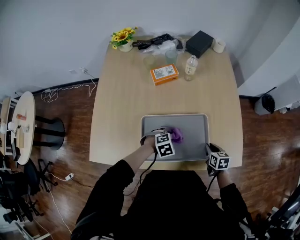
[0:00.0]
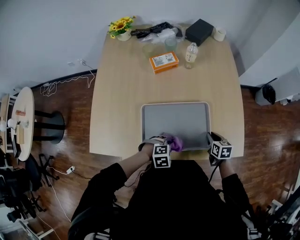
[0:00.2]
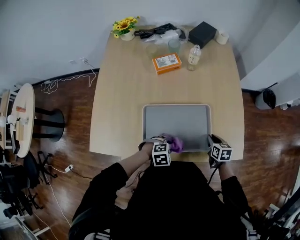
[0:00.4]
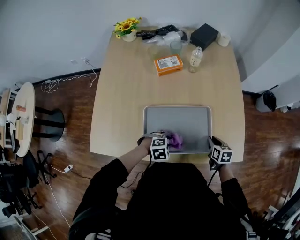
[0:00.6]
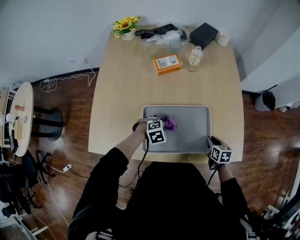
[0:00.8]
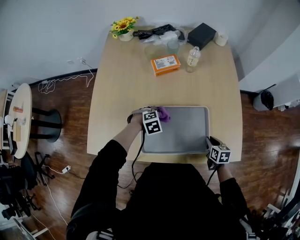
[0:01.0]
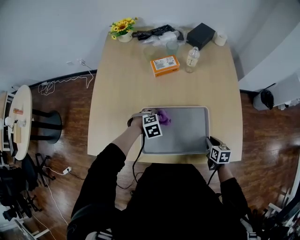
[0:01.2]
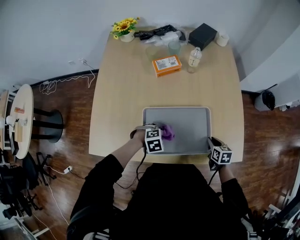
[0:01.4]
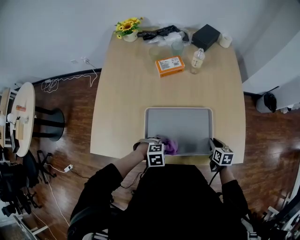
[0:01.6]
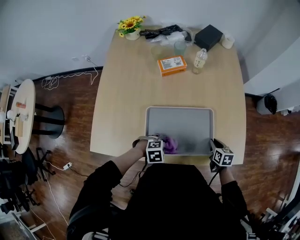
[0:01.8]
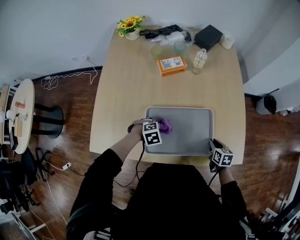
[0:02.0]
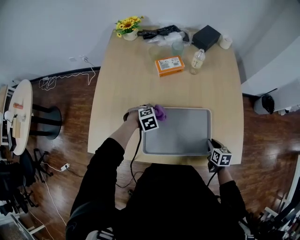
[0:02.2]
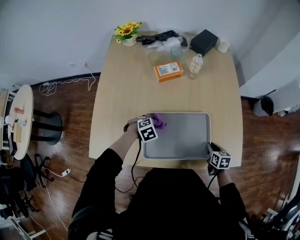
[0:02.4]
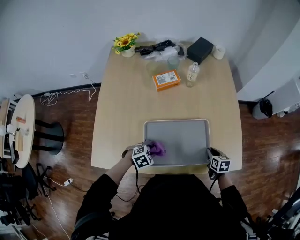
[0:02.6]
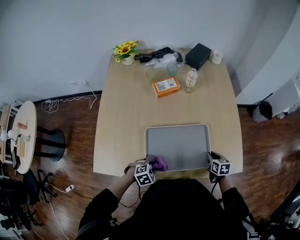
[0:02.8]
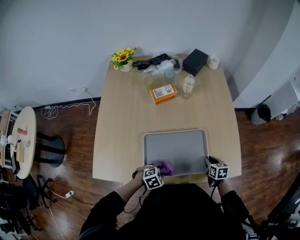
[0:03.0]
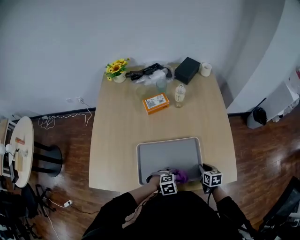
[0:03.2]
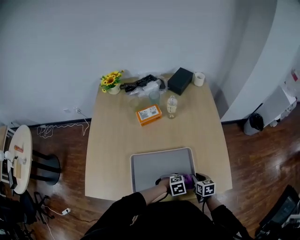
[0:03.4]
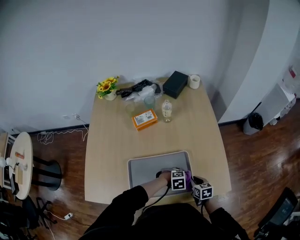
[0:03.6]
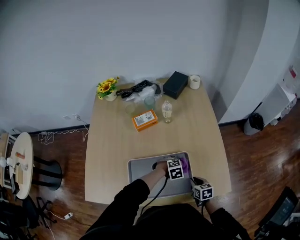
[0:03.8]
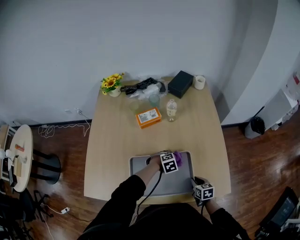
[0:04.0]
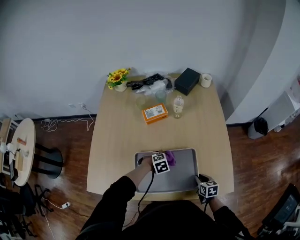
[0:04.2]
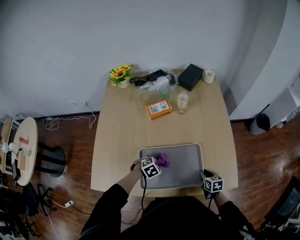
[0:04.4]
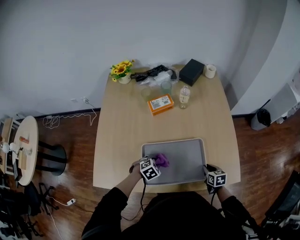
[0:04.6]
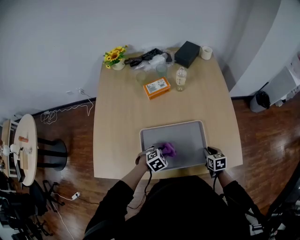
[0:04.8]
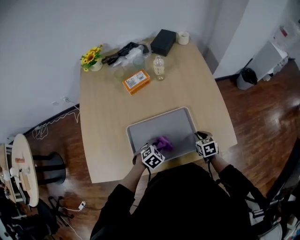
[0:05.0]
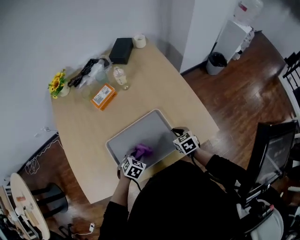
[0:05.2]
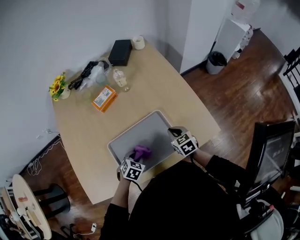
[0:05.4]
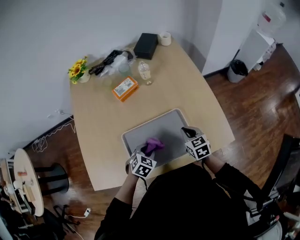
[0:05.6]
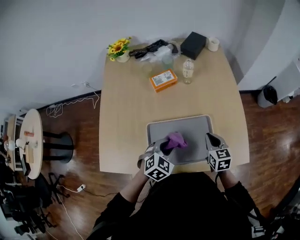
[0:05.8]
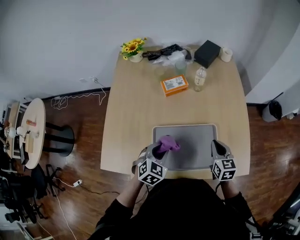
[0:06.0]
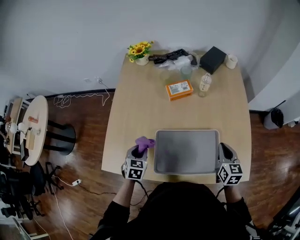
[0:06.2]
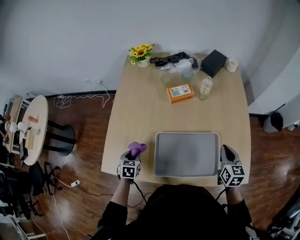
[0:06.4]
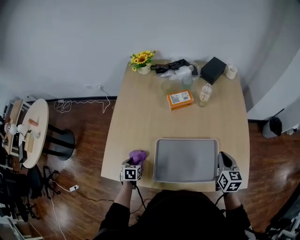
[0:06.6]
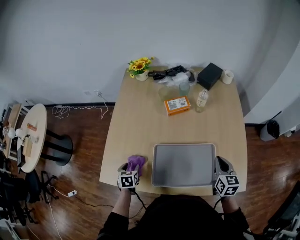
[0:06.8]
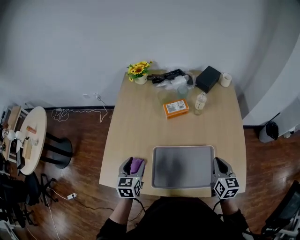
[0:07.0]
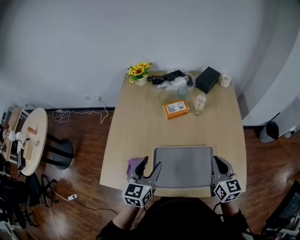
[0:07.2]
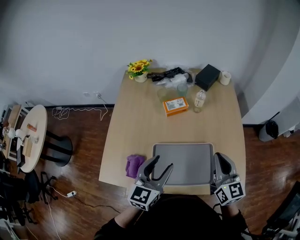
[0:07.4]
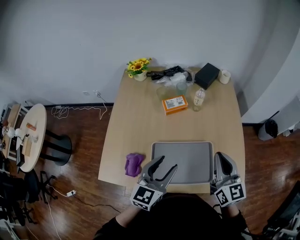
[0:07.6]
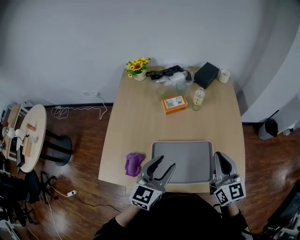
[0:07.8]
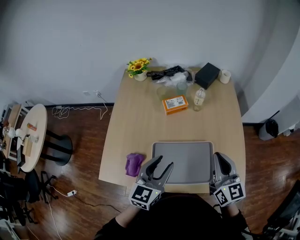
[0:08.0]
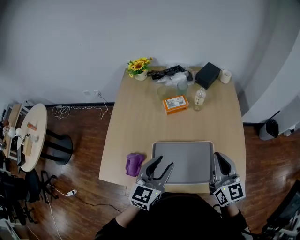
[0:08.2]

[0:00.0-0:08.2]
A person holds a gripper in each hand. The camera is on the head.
0:00.0 to 0:01.6: The left gripper moves forward and backward over about 15 cm, changing direction 2 times.
0:01.6 to 0:03.2: The left gripper goes approximately 10 cm to the right.
0:03.2 to 0:05.0: The left gripper goes left and right, about 25 cm each way, reversing 2 times.
0:05.0 to 0:06.6: The left gripper reaches some 15 cm upward, then returns, twists approximately 60 degrees counterclockwise, seen from behind, and opens its fingers. Meanwhile the right gripper moves upward, approximately 15 cm, and changes its angle by some 30 degrees.
0:06.6 to 0:08.2: The left gripper goes approximately 35 cm upward and to the right, and tilts its fingers roughly 50 degrees upward. Meanwhile the right gripper moves upward, about 15 cm, and turns by roughly 30 degrees.

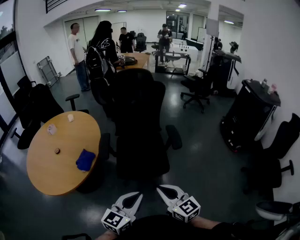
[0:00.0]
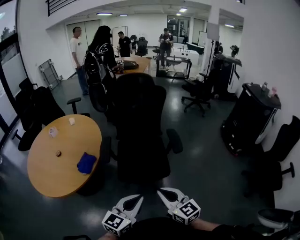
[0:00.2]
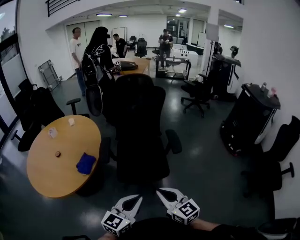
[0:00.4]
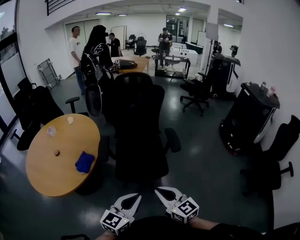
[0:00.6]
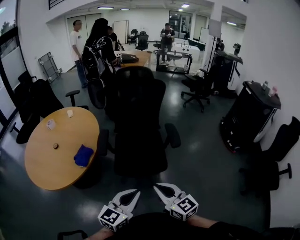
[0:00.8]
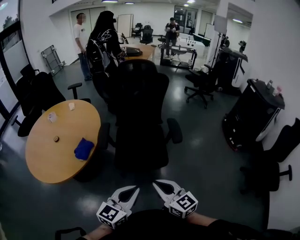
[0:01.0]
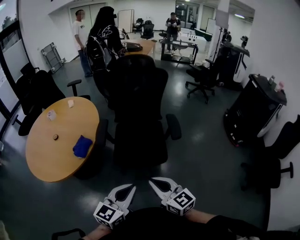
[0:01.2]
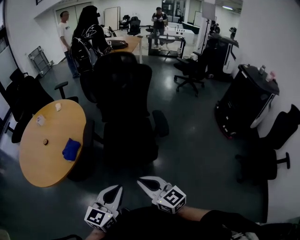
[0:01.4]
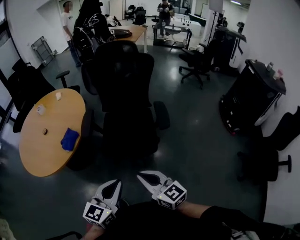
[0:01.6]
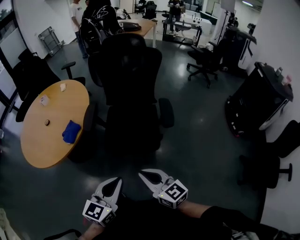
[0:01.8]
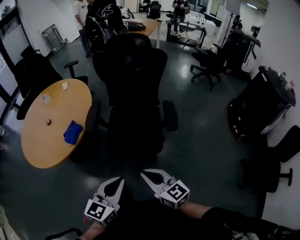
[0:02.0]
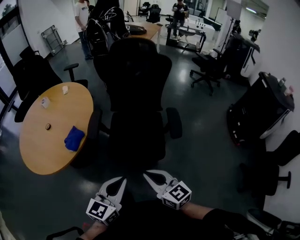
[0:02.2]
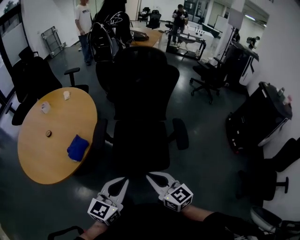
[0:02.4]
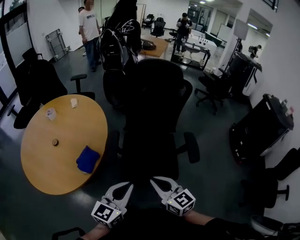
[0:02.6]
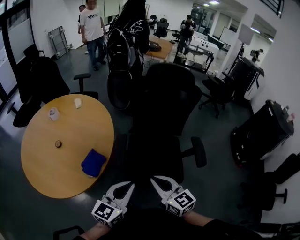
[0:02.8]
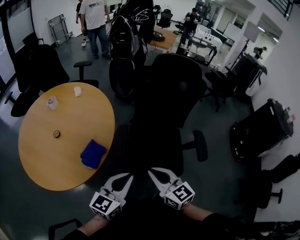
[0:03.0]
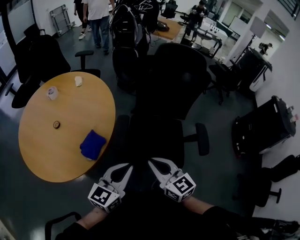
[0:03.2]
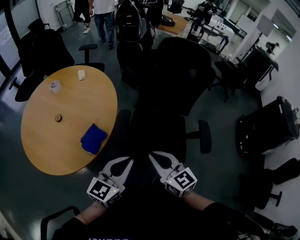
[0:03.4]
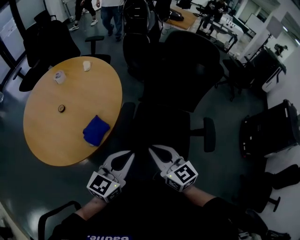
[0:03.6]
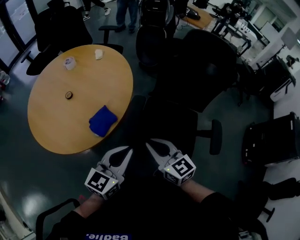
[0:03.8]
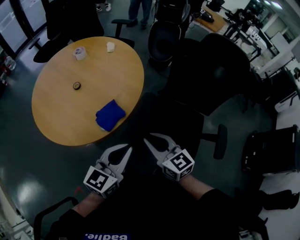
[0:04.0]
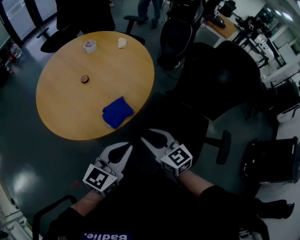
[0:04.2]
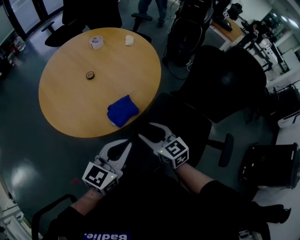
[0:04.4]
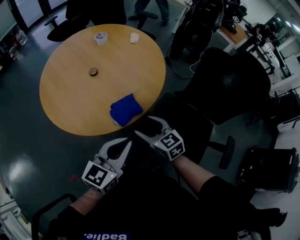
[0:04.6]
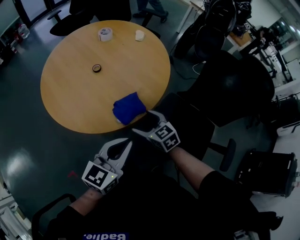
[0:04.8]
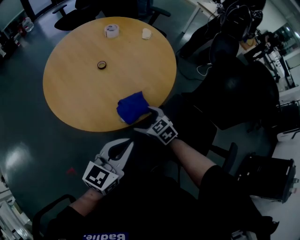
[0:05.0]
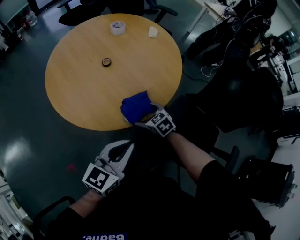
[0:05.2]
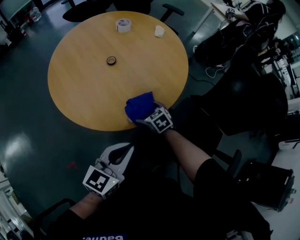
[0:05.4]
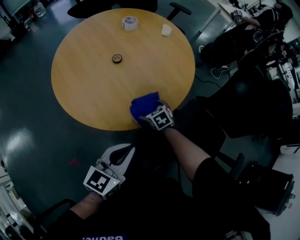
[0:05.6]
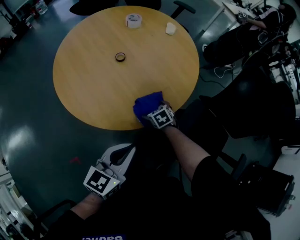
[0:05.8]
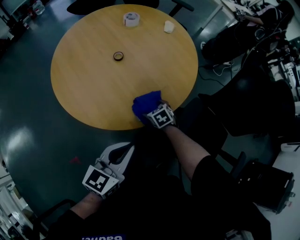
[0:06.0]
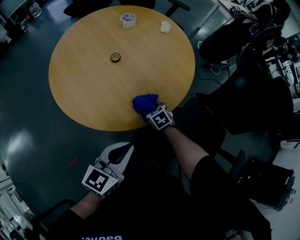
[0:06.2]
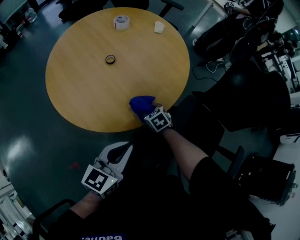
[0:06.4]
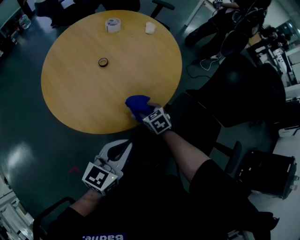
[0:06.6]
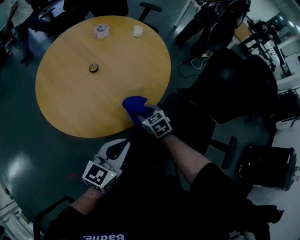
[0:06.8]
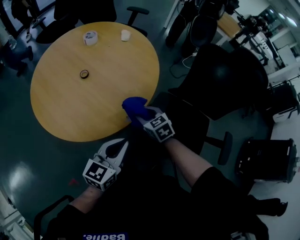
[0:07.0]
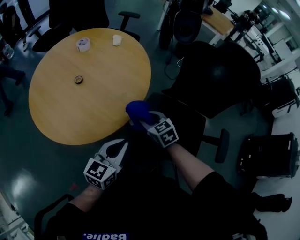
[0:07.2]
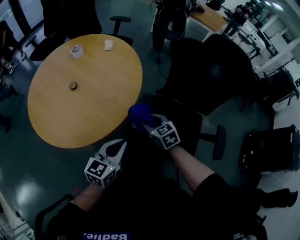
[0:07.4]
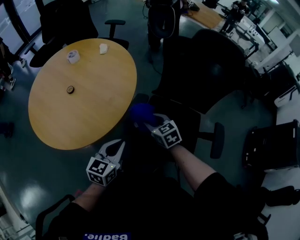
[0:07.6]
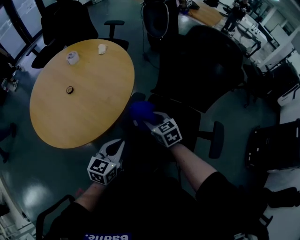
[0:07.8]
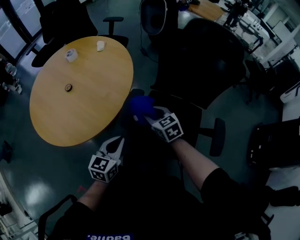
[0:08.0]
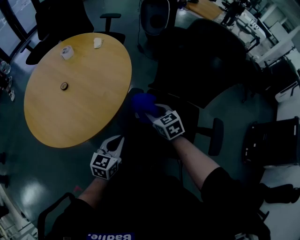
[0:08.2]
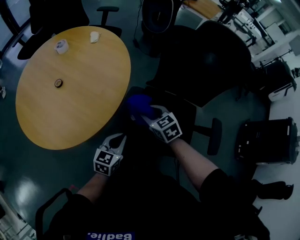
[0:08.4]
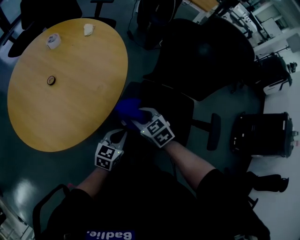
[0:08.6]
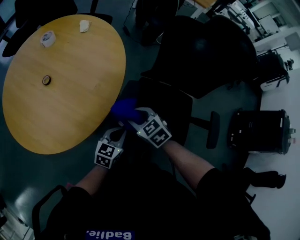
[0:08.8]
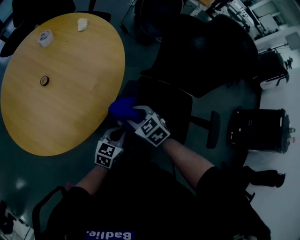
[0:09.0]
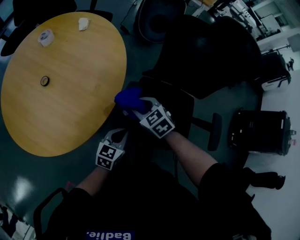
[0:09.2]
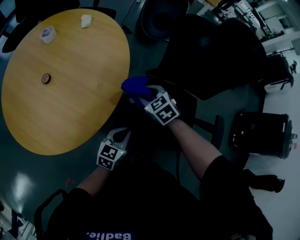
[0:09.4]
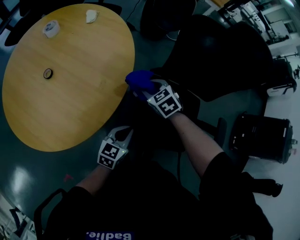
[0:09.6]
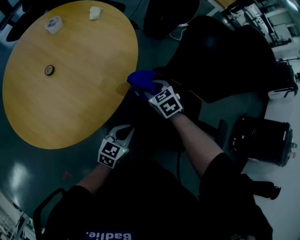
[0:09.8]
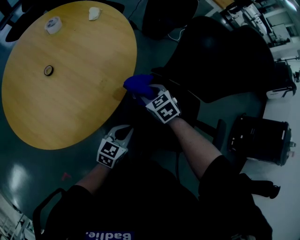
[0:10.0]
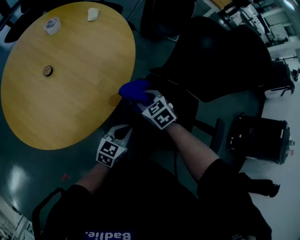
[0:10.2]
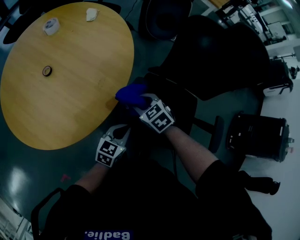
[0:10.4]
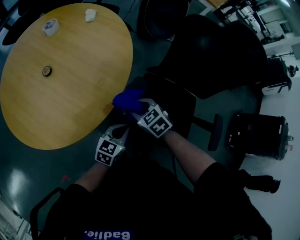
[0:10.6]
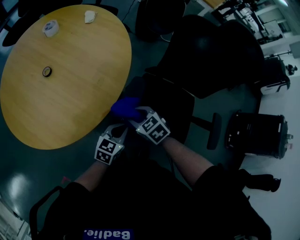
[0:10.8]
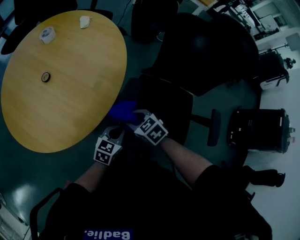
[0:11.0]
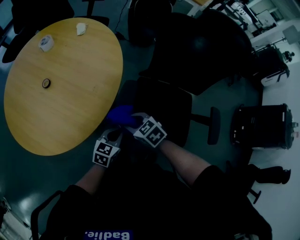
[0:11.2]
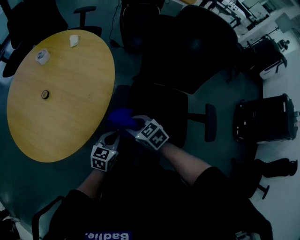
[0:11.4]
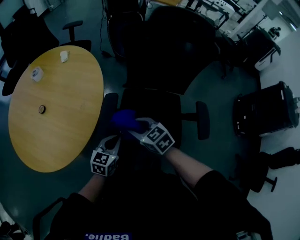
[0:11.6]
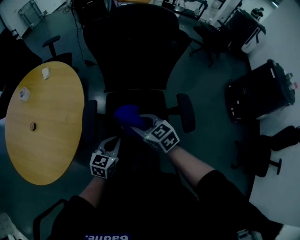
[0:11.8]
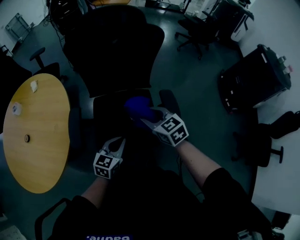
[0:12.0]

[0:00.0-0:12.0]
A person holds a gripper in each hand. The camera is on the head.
0:00.0 to 0:01.6: The right gripper shifts by about 5 cm.
0:01.6 to 0:03.0: The two grippers go about 30 cm forward and to the left.
0:03.0 to 0:04.4: The right gripper changes place by about 20 cm, swivels approximately 30 degrees, and opens its fingers; the left gripper changes place by roughly 15 cm, and rotates approximately 20 degrees.
0:04.4 to 0:06.0: The right gripper heads downward and forward, covering some 30 cm, angles its fingers downward, by some 40 degrees, and opens its fingers. Meanwhile the left gripper is displaced to the left and downward by roughly 10 cm.
0:06.0 to 0:07.6: The right gripper is displaced to the right and upward by approximately 30 cm, turns by some 30 degrees, and closes; the left gripper heads to the right, covering about 20 cm.
0:07.6 to 0:09.0: The right gripper goes about 10 cm to the left and downward. The left gripper heads downward, covering about 15 cm.
0:09.0 to 0:10.4: The right gripper travels forward by about 5 cm.
0:10.4 to 0:12.0: The right gripper shifts by approximately 40 cm, and rotates some 40 degrees, while the left gripper moves about 25 cm, and swivels about 20 degrees.

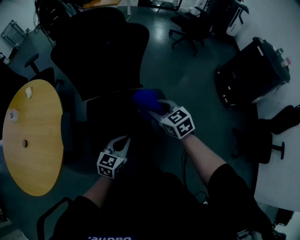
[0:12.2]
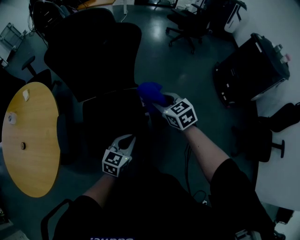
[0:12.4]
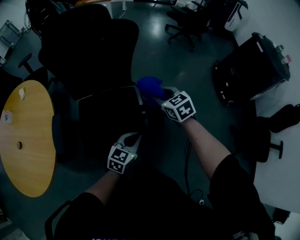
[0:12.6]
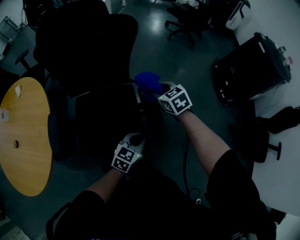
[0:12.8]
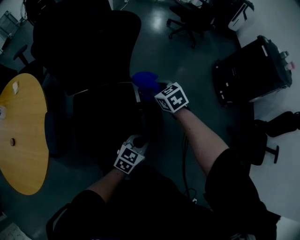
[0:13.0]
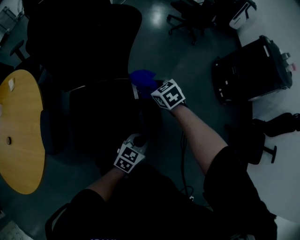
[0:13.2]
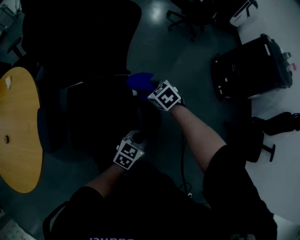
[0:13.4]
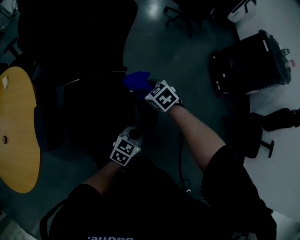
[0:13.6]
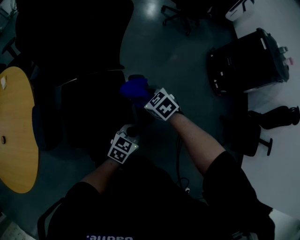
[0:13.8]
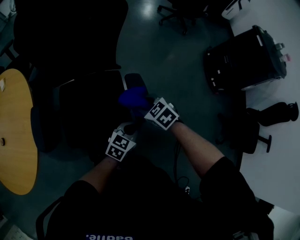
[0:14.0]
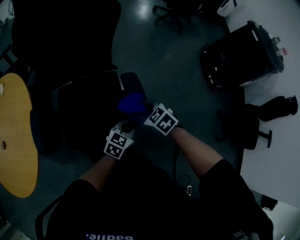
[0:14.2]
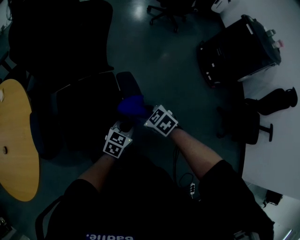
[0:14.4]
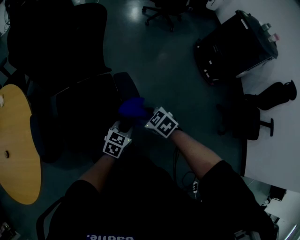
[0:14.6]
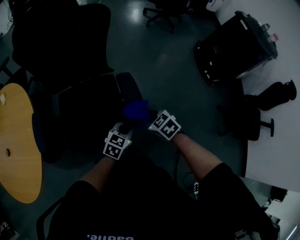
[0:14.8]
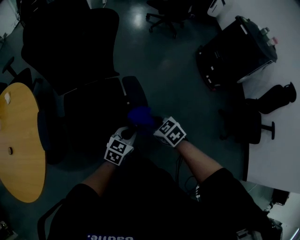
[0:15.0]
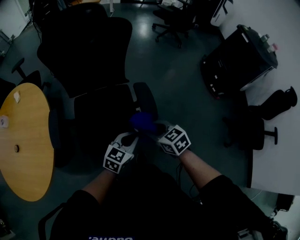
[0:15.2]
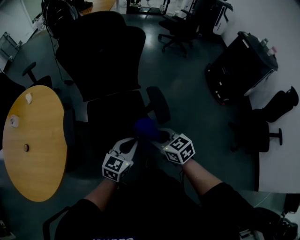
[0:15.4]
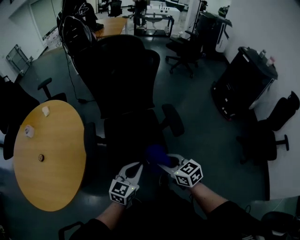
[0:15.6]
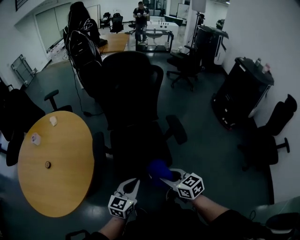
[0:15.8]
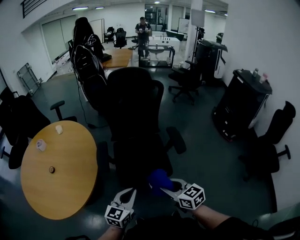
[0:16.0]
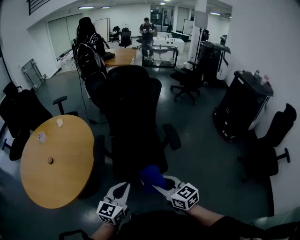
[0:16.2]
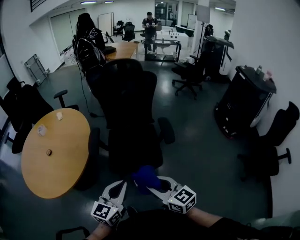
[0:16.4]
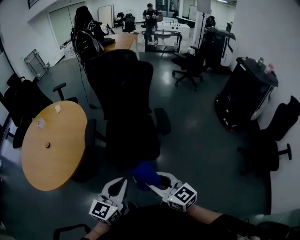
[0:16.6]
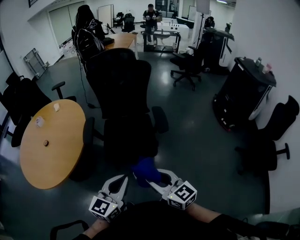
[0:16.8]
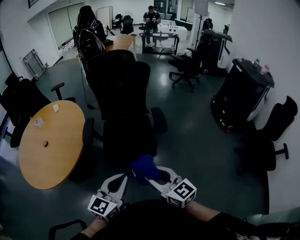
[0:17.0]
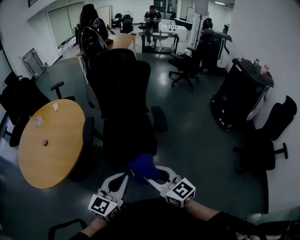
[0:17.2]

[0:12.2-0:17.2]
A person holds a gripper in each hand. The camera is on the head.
0:12.2 to 0:13.8: The right gripper heads downward and to the right, covering some 15 cm, and rotates some 20 degrees. The left gripper is displaced to the right and downward by some 20 cm.
0:13.8 to 0:15.6: The left gripper goes about 35 cm to the left, backward and upward, while the right gripper shifts some 35 cm backward, to the left and upward, and swivels roughly 30 degrees.
0:15.6 to 0:17.2: The grippers both shift backward and upward by approximately 25 cm. The right gripper turns by roughly 20 degrees.
